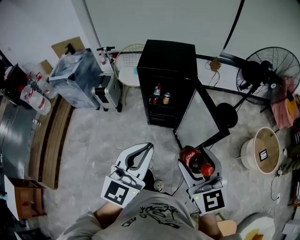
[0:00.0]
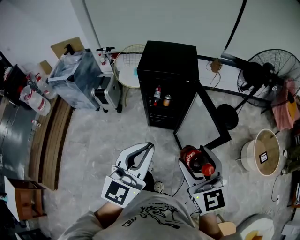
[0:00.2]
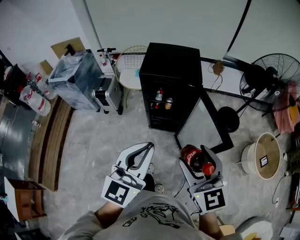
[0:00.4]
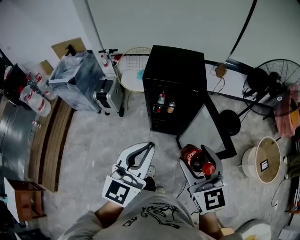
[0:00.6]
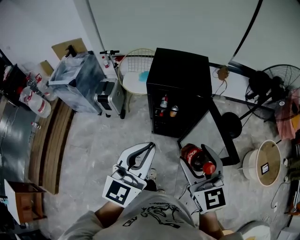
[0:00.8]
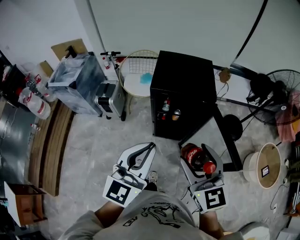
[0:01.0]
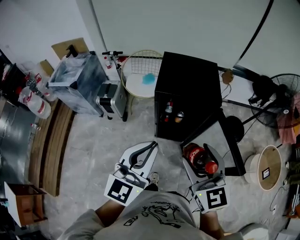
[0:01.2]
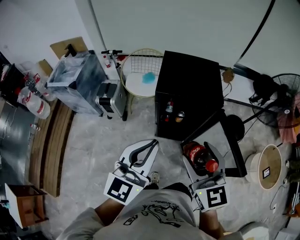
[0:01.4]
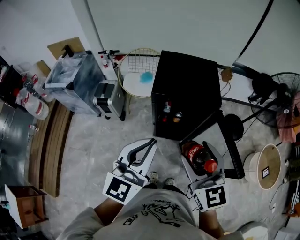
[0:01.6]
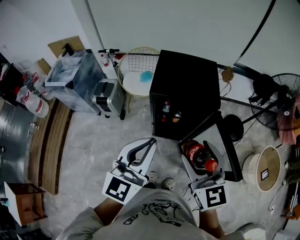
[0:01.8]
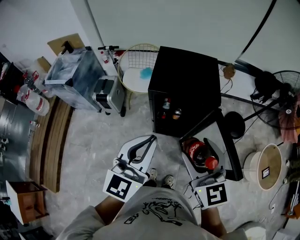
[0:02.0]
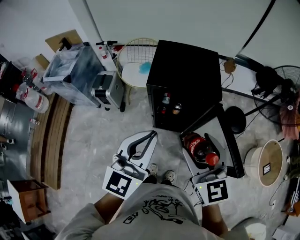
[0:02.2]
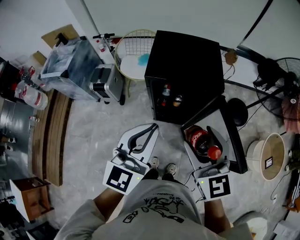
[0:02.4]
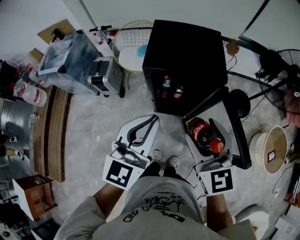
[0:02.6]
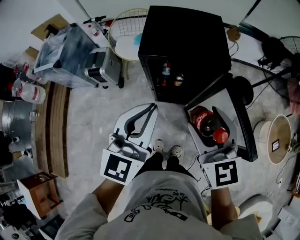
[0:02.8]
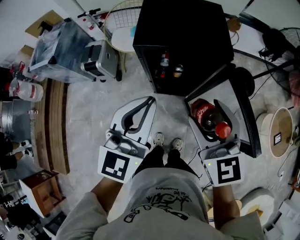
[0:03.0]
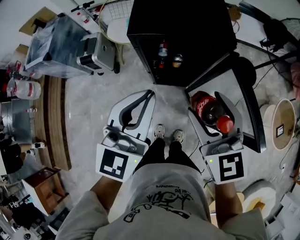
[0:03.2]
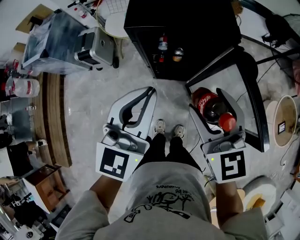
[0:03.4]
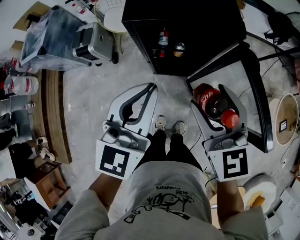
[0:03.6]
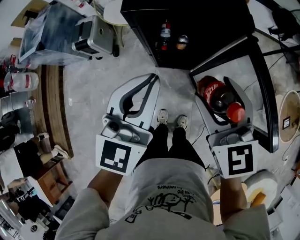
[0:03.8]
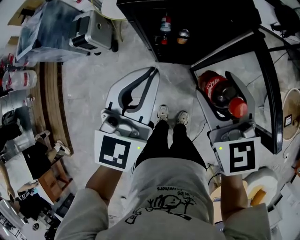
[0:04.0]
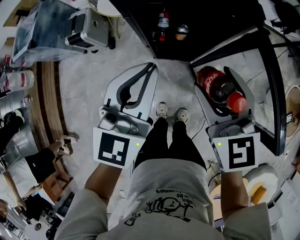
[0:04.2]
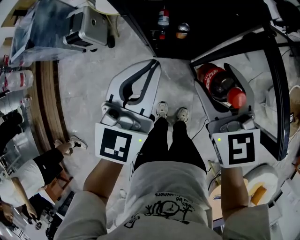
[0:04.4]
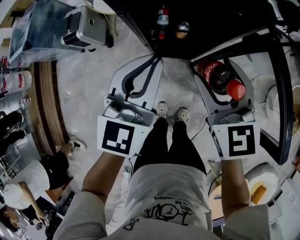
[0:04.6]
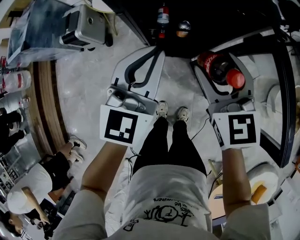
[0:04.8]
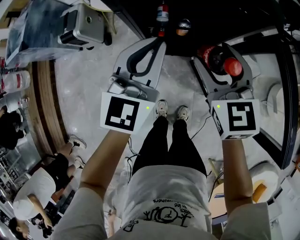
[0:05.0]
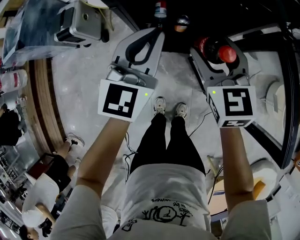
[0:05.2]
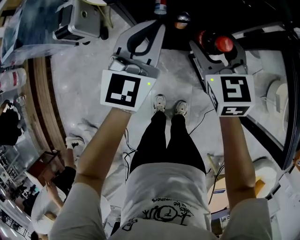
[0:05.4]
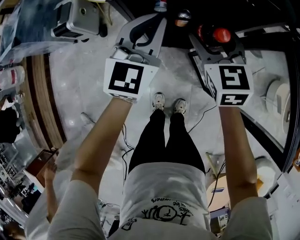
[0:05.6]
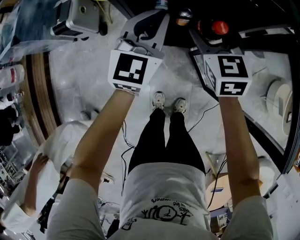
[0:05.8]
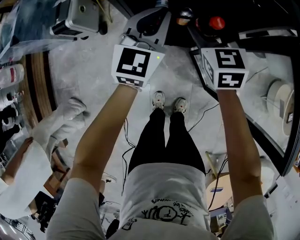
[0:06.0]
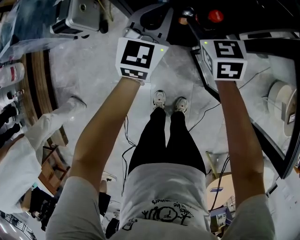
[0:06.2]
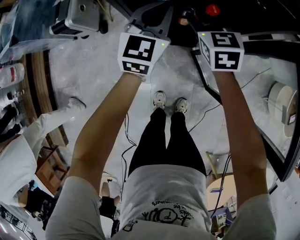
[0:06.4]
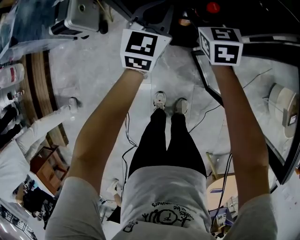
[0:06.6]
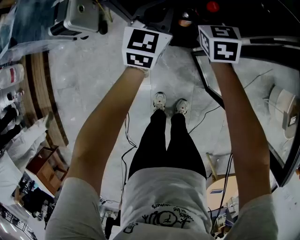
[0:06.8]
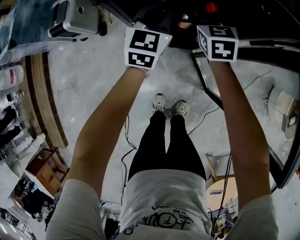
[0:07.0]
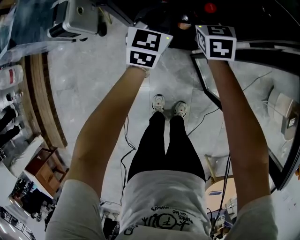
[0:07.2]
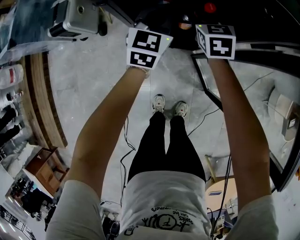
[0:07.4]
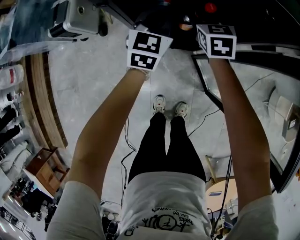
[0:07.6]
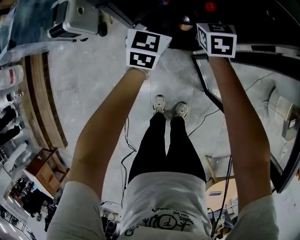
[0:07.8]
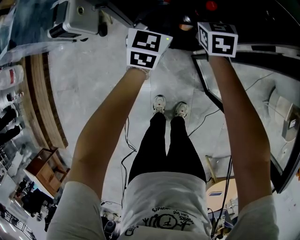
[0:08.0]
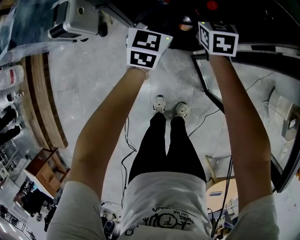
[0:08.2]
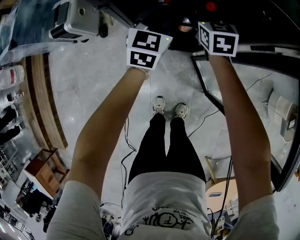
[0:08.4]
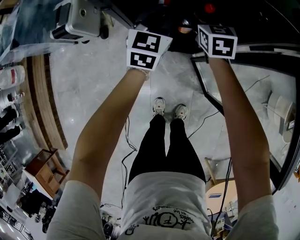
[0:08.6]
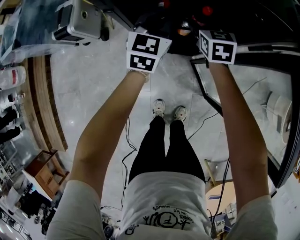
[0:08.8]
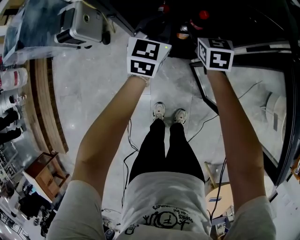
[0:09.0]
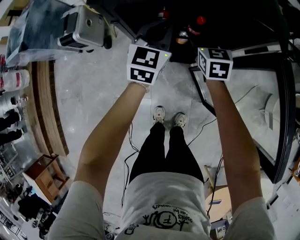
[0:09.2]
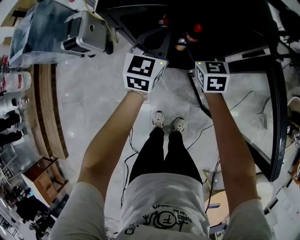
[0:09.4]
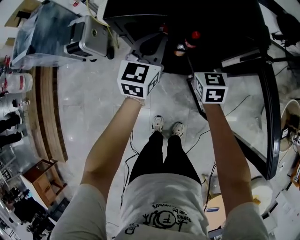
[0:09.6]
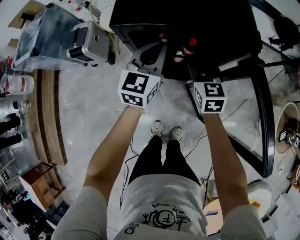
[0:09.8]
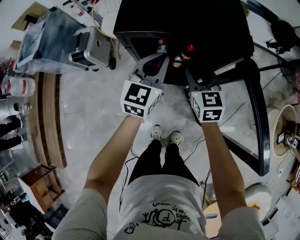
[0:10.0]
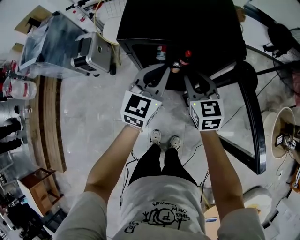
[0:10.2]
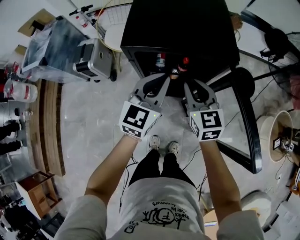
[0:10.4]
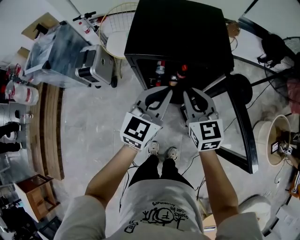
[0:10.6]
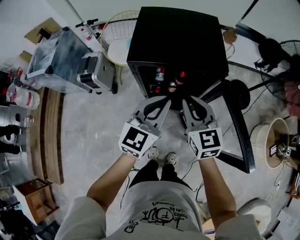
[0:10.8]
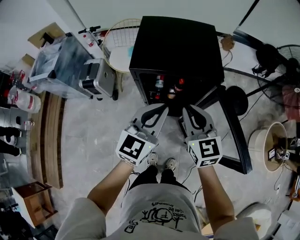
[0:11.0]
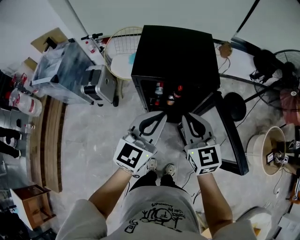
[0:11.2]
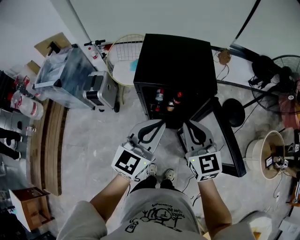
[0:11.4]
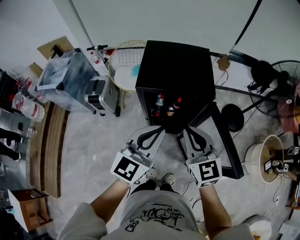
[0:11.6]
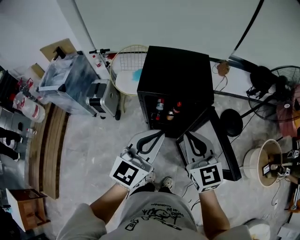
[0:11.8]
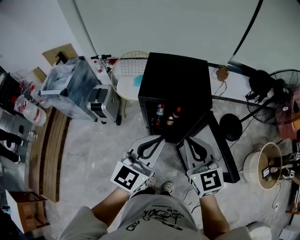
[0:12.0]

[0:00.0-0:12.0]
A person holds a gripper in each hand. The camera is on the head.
0:00.0 to 0:01.6: The grippers both shift forward and to the left by approximately 25 cm.
0:01.6 to 0:03.0: Both grippers travel together downward and forward, about 10 cm.
0:03.0 to 0:04.4: The two grippers go some 15 cm downward.
0:04.4 to 0:06.0: The two grippers go some 20 cm downward and forward.
0:06.0 to 0:07.6: The right gripper travels forward and downward by about 15 cm. Meanwhile the left gripper is displaced downward and forward by roughly 10 cm.
0:07.6 to 0:09.0: There are only small adjustments of the grippers.
0:09.0 to 0:10.4: The two grippers go approximately 25 cm upward and backward. The right gripper closes up.
0:10.4 to 0:12.0: Both grippers travel together upward and backward, some 25 cm.

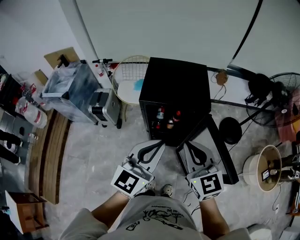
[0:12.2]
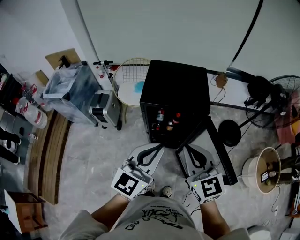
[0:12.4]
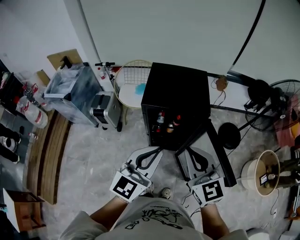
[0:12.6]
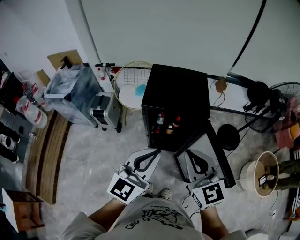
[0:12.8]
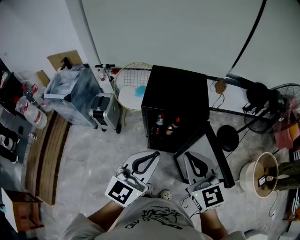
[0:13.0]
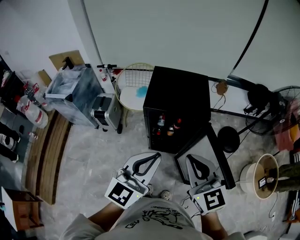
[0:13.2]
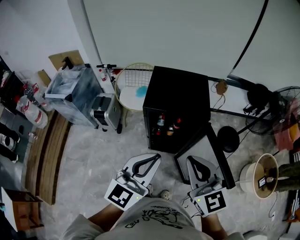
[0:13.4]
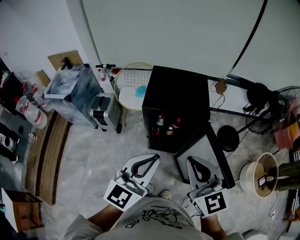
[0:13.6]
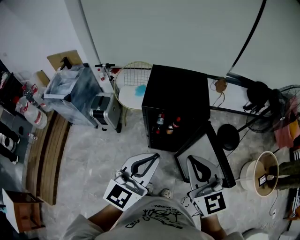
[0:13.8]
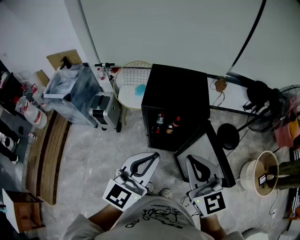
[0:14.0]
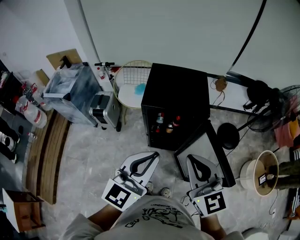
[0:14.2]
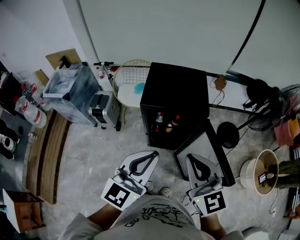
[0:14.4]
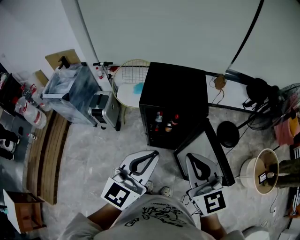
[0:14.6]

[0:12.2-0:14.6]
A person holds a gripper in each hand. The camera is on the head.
0:12.2 to 0:13.4: The right gripper goes roughly 5 cm upward; the left gripper changes place by about 5 cm.
0:13.4 to 0:14.6: Neither gripper changes place.

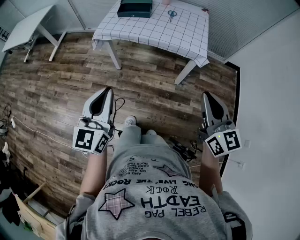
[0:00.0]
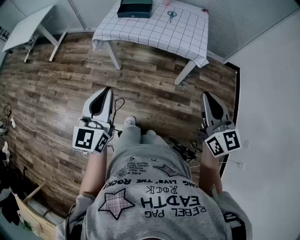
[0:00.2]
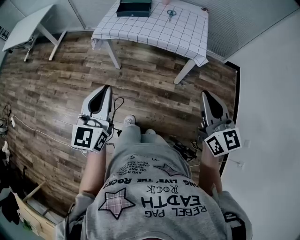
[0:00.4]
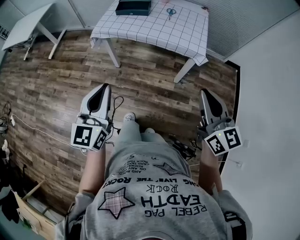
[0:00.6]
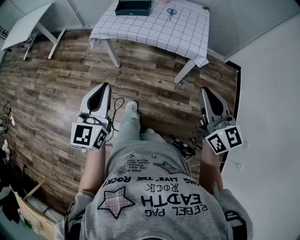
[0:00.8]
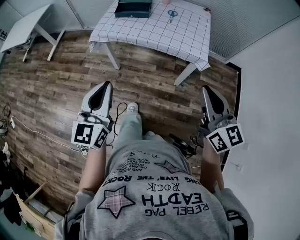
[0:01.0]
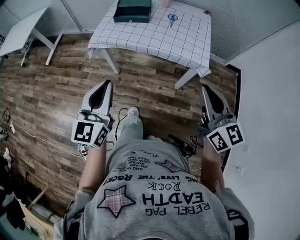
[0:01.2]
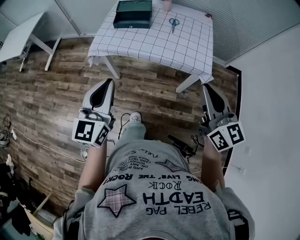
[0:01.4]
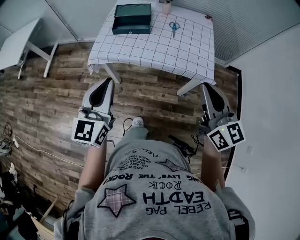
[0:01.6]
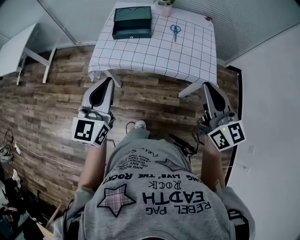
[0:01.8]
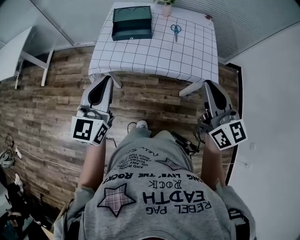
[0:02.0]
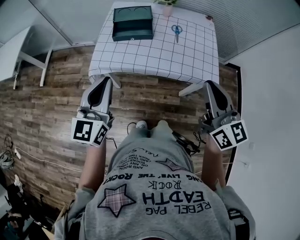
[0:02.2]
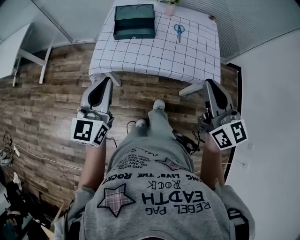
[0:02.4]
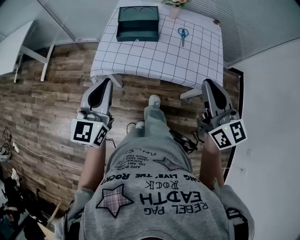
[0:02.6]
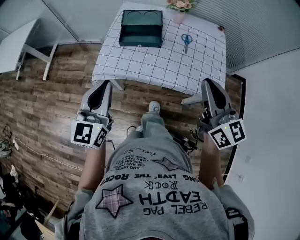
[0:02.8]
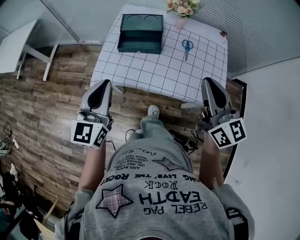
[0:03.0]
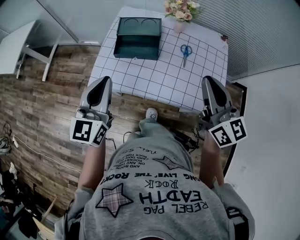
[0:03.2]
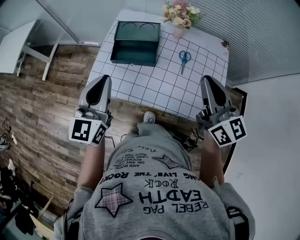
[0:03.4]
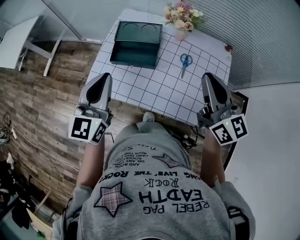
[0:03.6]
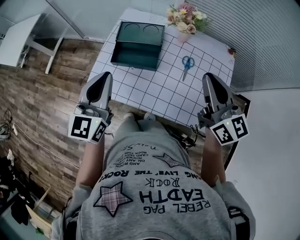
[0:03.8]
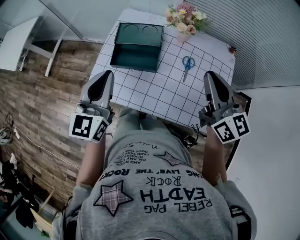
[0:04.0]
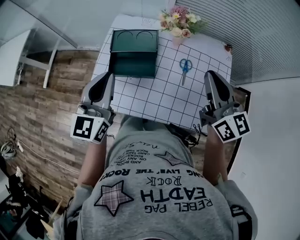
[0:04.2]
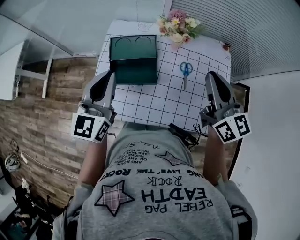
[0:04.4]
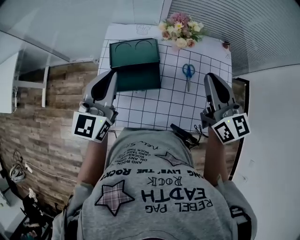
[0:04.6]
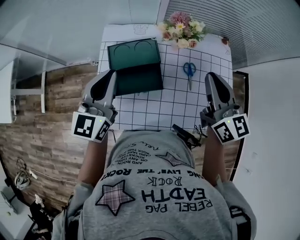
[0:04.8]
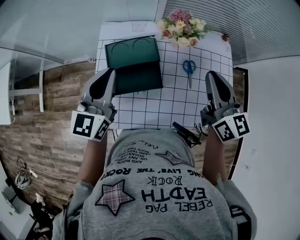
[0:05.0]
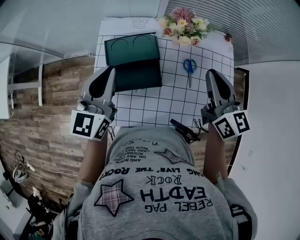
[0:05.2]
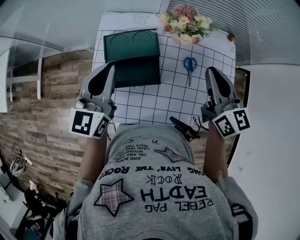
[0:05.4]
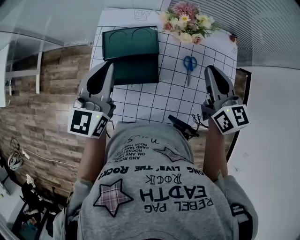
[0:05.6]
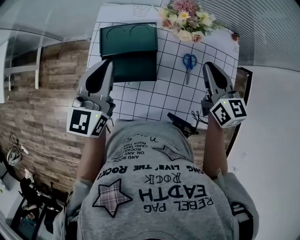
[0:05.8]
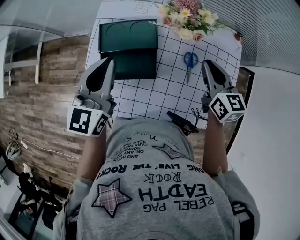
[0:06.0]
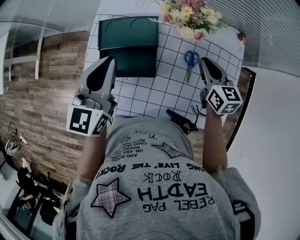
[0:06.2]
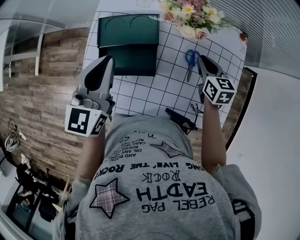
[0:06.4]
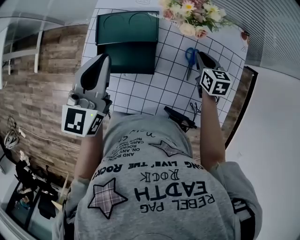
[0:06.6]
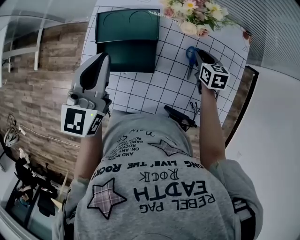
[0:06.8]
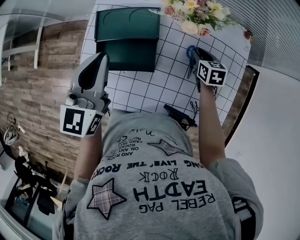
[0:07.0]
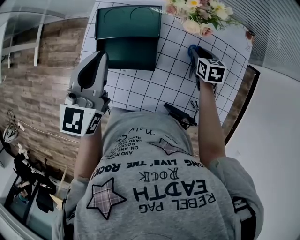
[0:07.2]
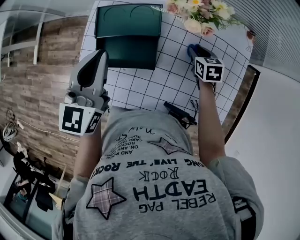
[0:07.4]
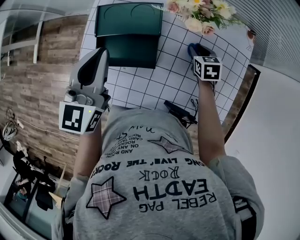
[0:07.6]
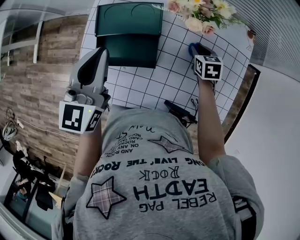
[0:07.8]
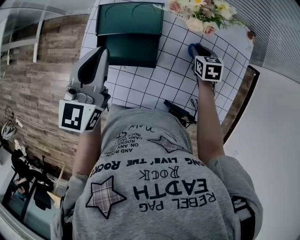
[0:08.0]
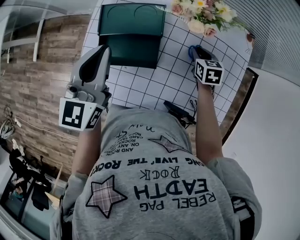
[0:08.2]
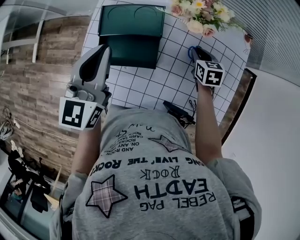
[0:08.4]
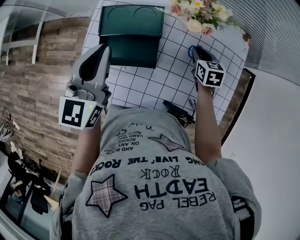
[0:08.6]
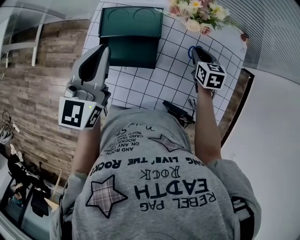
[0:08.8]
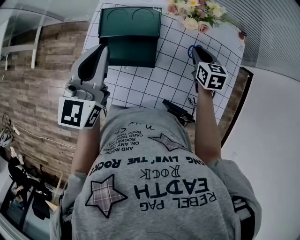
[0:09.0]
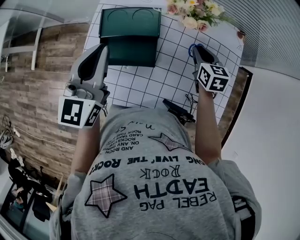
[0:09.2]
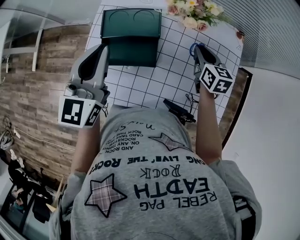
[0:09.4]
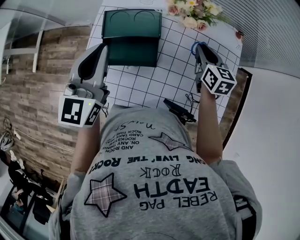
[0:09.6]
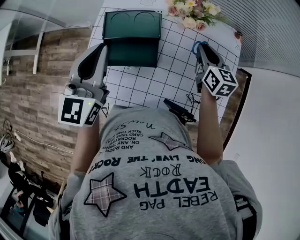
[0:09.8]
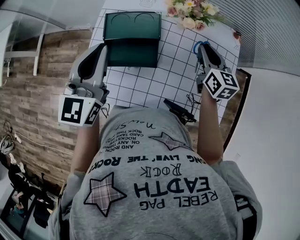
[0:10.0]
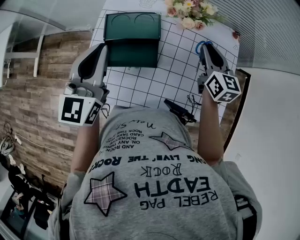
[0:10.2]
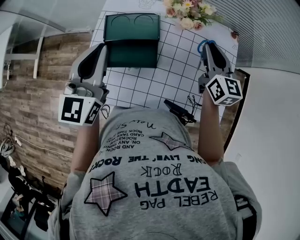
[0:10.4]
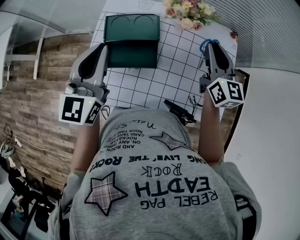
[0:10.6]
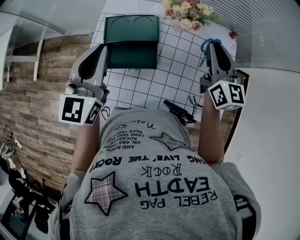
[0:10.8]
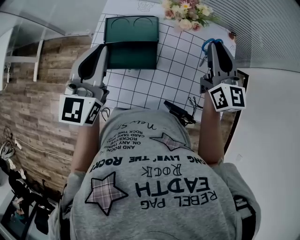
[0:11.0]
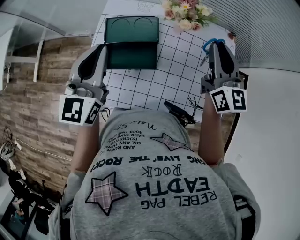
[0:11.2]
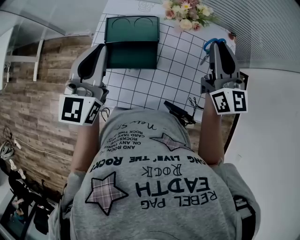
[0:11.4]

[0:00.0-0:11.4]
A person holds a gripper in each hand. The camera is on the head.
0:00.0 to 0:01.4: Both grippers move forward, approximately 20 cm.
0:01.4 to 0:02.8: The two grippers go roughly 20 cm forward and to the left.
0:02.8 to 0:04.2: Both grippers move forward, roughly 25 cm.
0:04.2 to 0:05.6: The left gripper travels forward by about 10 cm. The right gripper goes some 10 cm forward and downward.
0:05.6 to 0:07.2: The right gripper travels downward by about 25 cm, and tilts its fingers roughly 40 degrees downward.
0:07.2 to 0:08.6: The grippers move only a little.
0:08.6 to 0:10.0: The right gripper travels upward by some 15 cm, and swivels roughly 30 degrees.
0:10.0 to 0:11.4: The right gripper goes roughly 15 cm upward, and turns by some 30 degrees.
